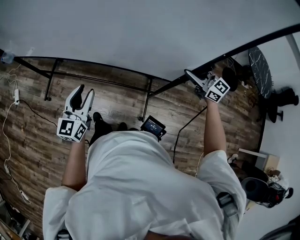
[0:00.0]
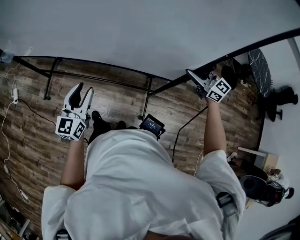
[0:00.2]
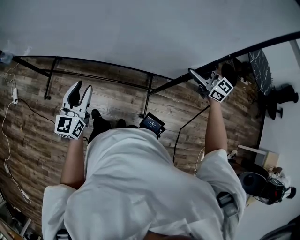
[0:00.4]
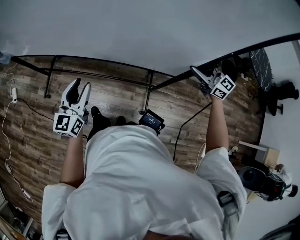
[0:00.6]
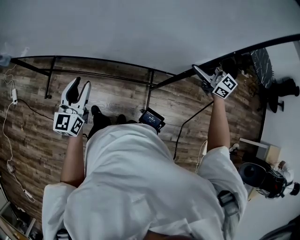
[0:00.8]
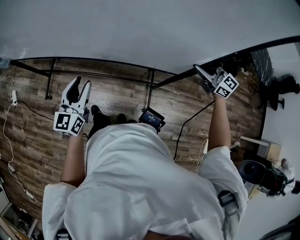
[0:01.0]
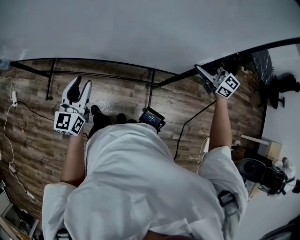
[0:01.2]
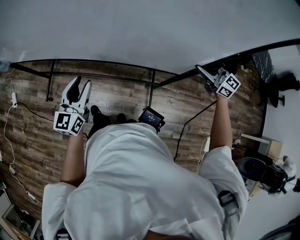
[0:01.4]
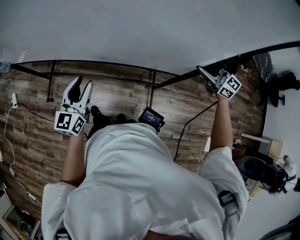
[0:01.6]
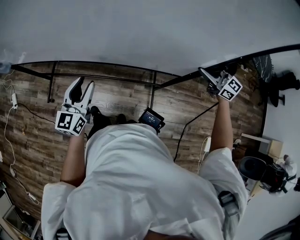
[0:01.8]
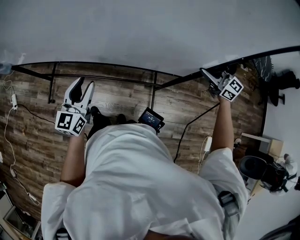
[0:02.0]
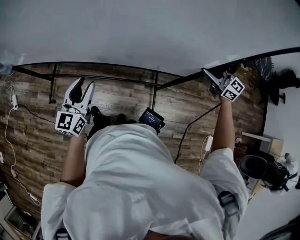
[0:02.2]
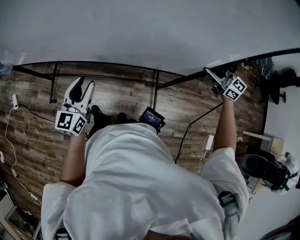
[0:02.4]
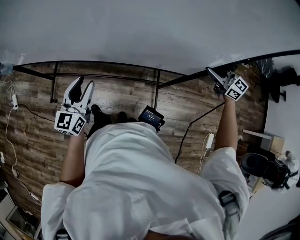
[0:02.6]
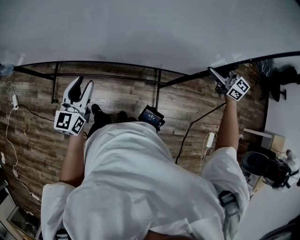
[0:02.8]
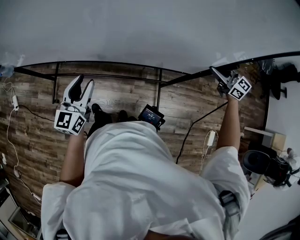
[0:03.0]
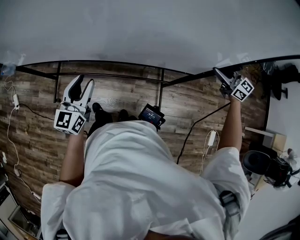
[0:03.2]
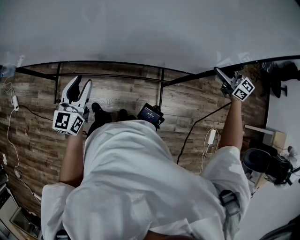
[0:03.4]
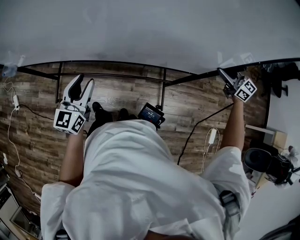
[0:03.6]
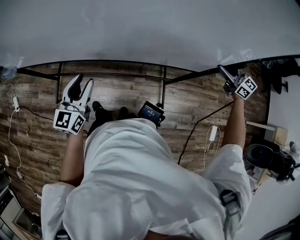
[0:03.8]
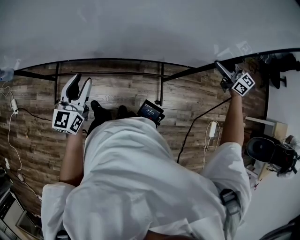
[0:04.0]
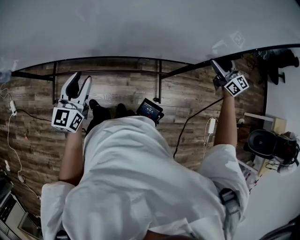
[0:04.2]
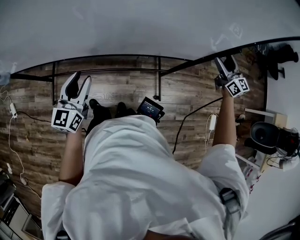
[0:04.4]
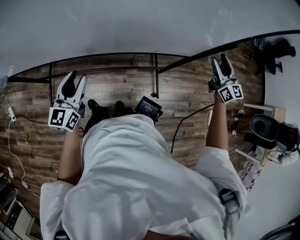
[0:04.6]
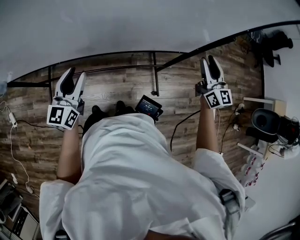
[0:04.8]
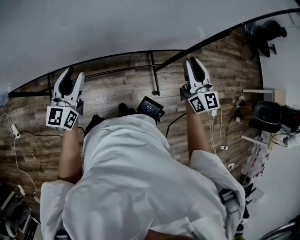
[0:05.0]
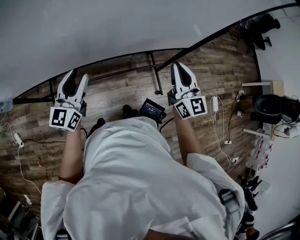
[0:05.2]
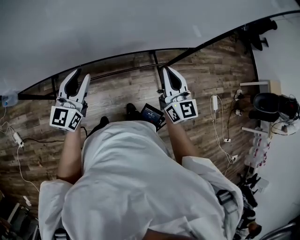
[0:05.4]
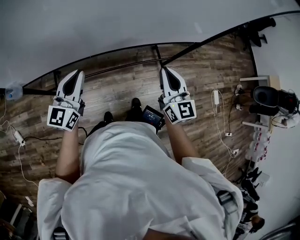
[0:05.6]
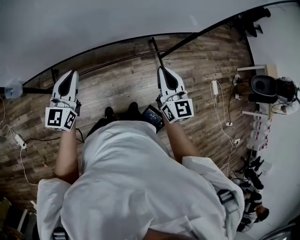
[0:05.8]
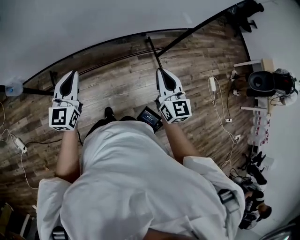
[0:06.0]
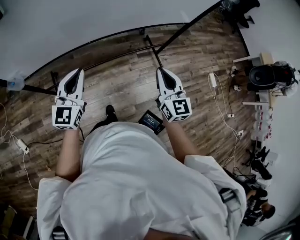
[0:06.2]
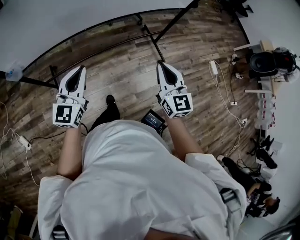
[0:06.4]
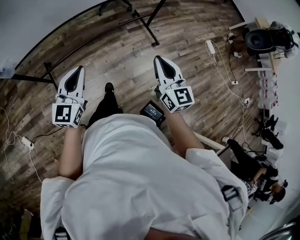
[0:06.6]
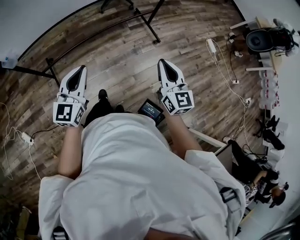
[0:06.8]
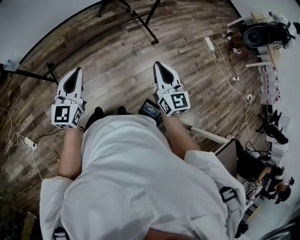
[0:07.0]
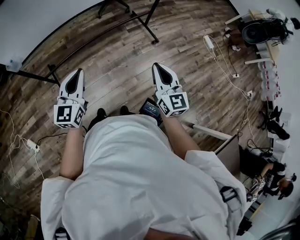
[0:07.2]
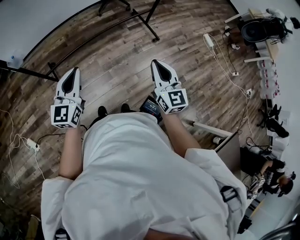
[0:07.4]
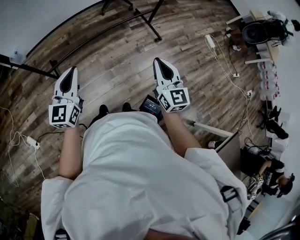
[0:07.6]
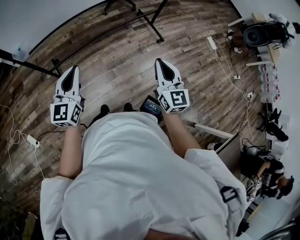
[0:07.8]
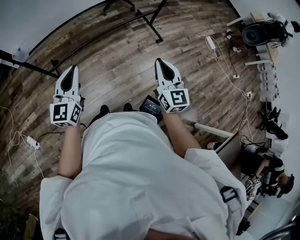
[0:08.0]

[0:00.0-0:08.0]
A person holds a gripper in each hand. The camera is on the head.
0.0 to 1.6 s: The right gripper is displaced to the right by approximately 10 cm.
1.6 to 3.2 s: The right gripper moves to the right, roughly 10 cm.
3.2 to 4.8 s: The right gripper changes place by about 10 cm, turns by about 40 degrees, and opens, then closes once more.
4.8 to 6.4 s: The left gripper travels backward and to the left by approximately 35 cm, changes its angle by roughly 20 degrees, and closes its fingers; the right gripper travels backward and to the left by roughly 60 cm, rotates roughly 20 degrees, and closes its fingers.
6.4 to 8.0 s: The right gripper moves backward, approximately 20 cm. Meanwhile the left gripper is displaced backward and to the left by approximately 20 cm.

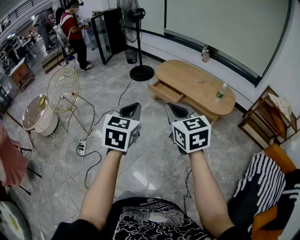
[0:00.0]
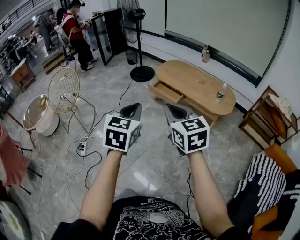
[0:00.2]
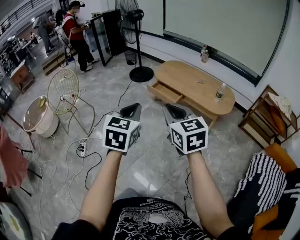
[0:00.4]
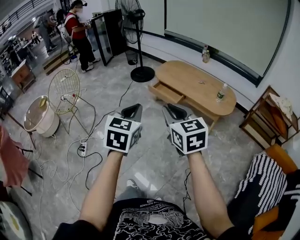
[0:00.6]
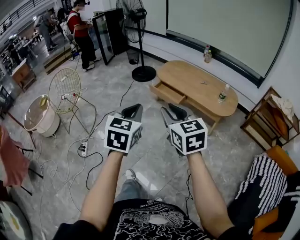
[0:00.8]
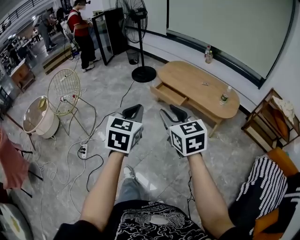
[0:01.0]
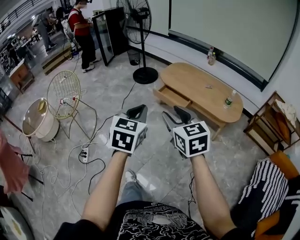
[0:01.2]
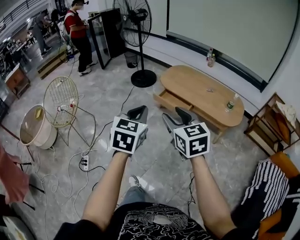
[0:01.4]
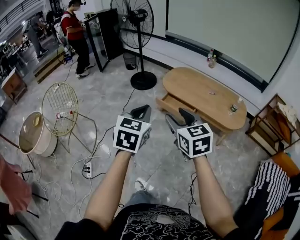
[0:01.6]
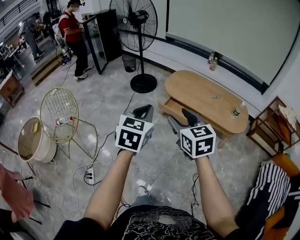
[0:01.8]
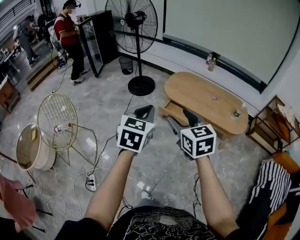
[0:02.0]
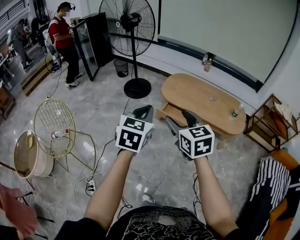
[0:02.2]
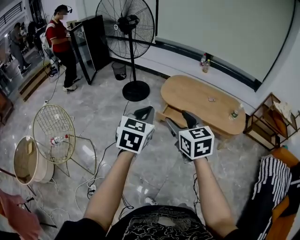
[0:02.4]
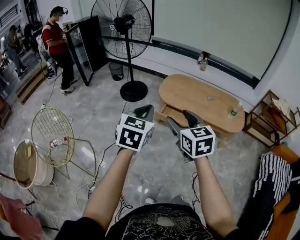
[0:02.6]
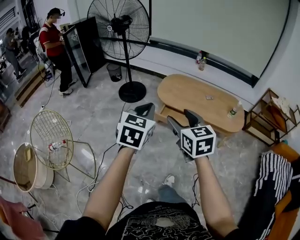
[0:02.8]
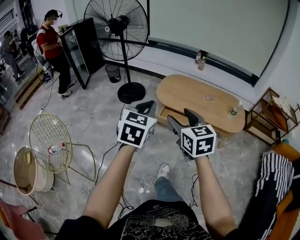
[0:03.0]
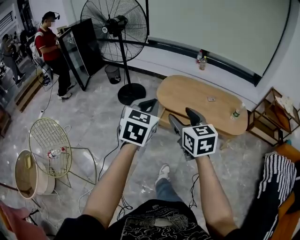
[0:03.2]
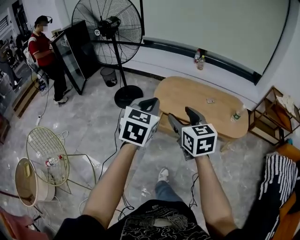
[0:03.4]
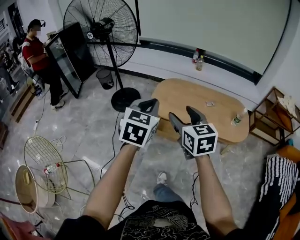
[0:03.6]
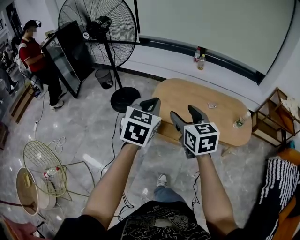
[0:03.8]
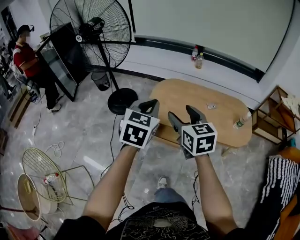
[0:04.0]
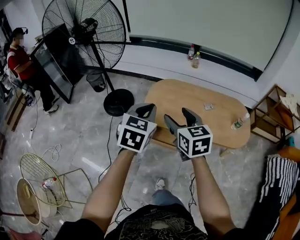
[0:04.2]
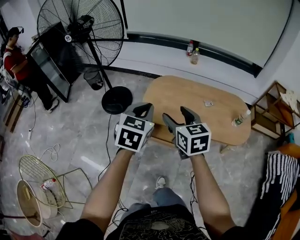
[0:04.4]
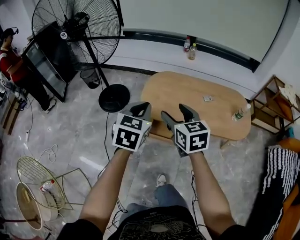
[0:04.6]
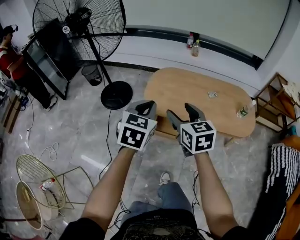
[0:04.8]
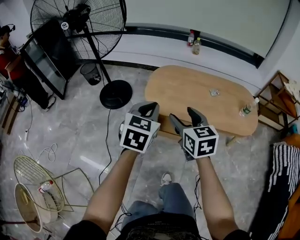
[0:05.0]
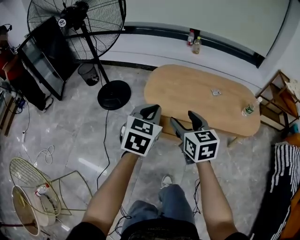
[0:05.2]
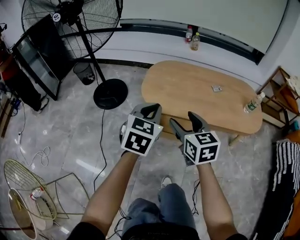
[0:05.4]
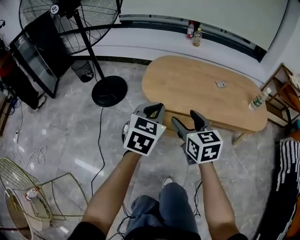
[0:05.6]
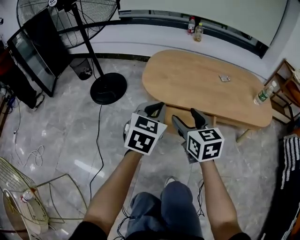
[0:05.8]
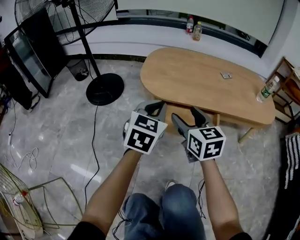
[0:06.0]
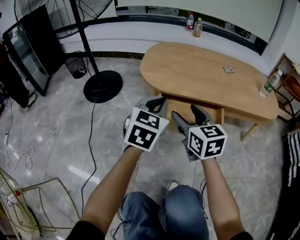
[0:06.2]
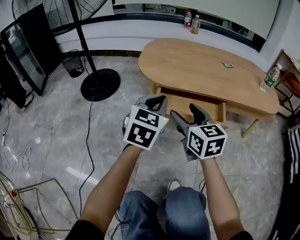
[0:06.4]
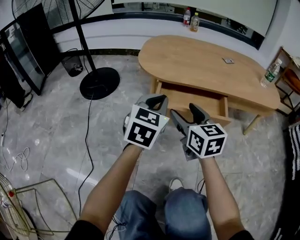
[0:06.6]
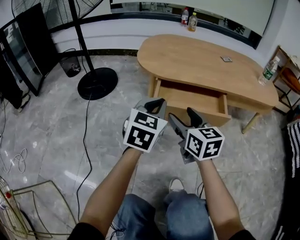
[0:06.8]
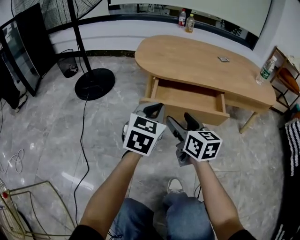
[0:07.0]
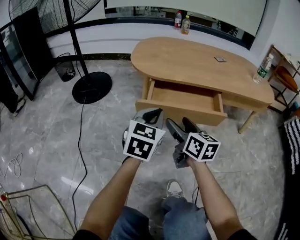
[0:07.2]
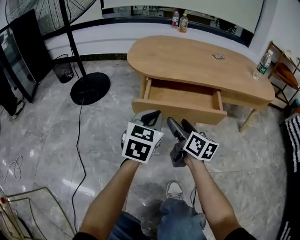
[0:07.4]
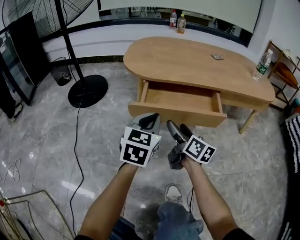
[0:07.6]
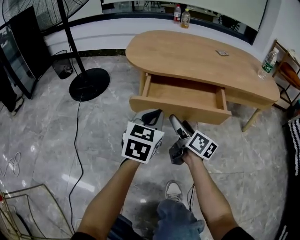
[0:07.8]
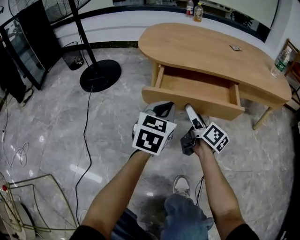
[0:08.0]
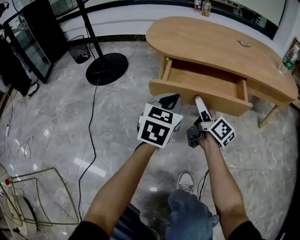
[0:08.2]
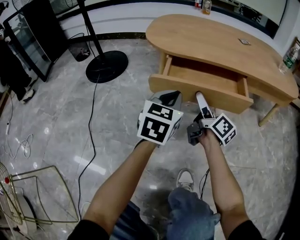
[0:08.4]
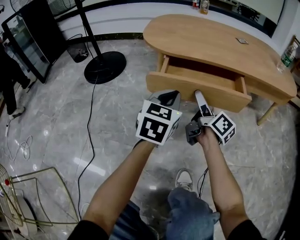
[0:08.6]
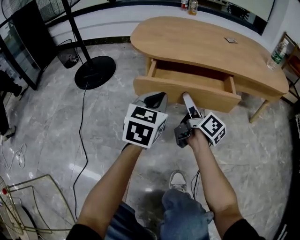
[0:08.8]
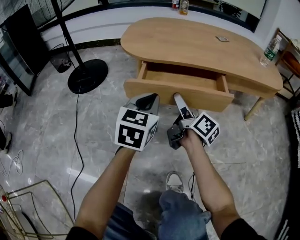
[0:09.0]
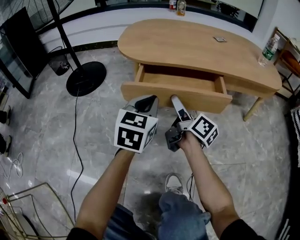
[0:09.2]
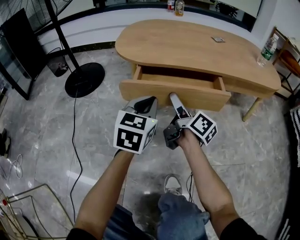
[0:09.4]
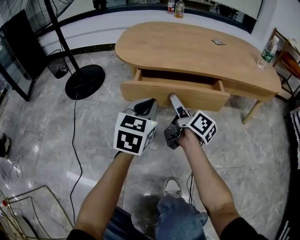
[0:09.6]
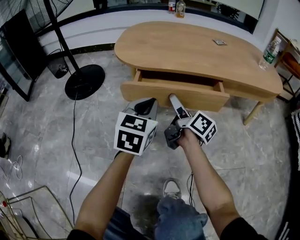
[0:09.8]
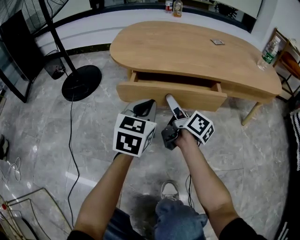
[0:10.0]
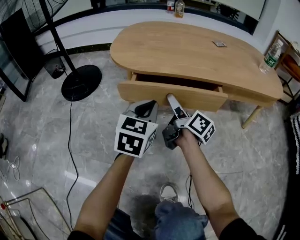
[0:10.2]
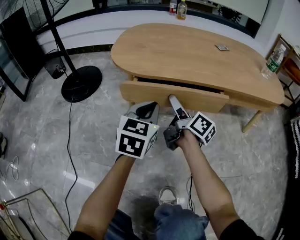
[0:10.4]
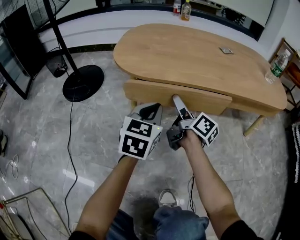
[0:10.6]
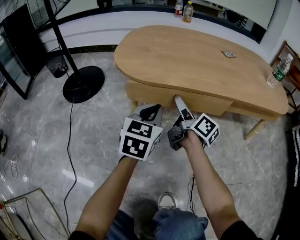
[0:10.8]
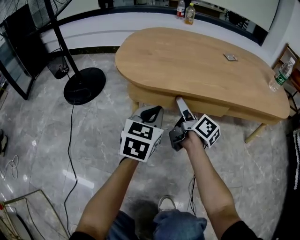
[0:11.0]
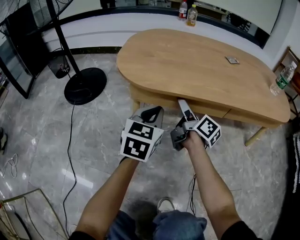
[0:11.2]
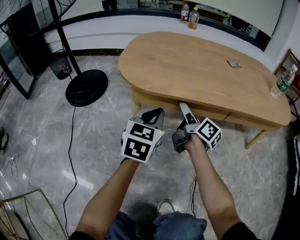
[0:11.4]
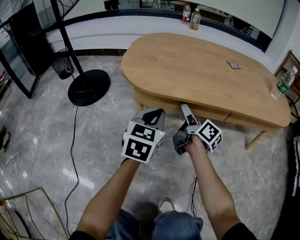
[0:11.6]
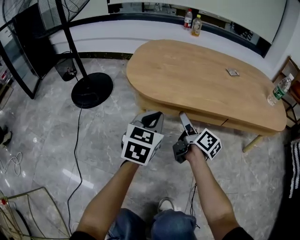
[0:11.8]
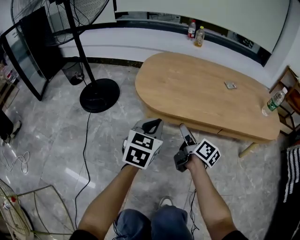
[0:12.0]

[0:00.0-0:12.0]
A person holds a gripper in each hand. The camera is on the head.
0.0 to 1.6 s: The two grippers go roughly 25 cm forward and to the left. The right gripper opens up.
1.6 to 3.0 s: The right gripper moves forward and to the left, approximately 15 cm. Meanwhile the left gripper is displaced forward by roughly 20 cm.
3.0 to 4.4 s: Both grippers travel together forward, about 30 cm.
4.4 to 6.0 s: The two grippers go roughly 35 cm downward.
6.0 to 7.6 s: Both grippers travel together downward, about 20 cm. The right gripper rotates roughly 40 degrees.
7.6 to 9.0 s: The right gripper swivels some 20 degrees.
9.0 to 10.4 s: Both grippers move forward, roughly 5 cm.
10.4 to 12.0 s: The right gripper is displaced upward by about 5 cm, while the left gripper is displaced upward and to the left by about 10 cm.

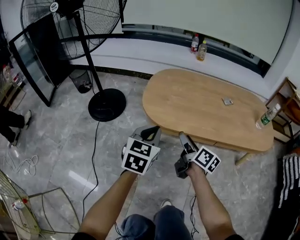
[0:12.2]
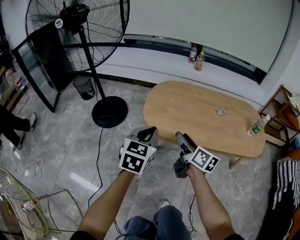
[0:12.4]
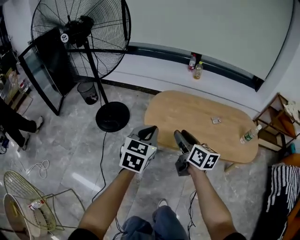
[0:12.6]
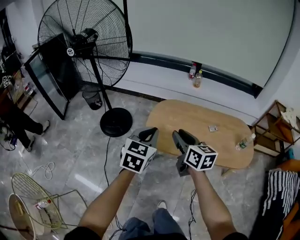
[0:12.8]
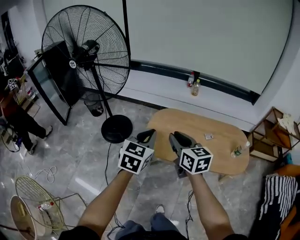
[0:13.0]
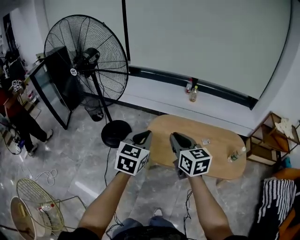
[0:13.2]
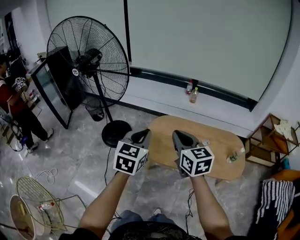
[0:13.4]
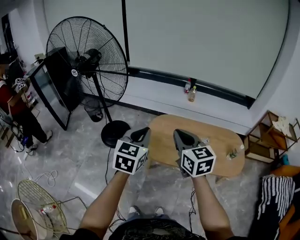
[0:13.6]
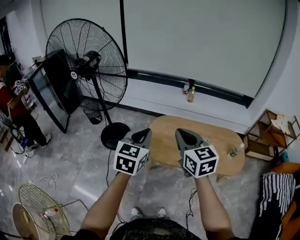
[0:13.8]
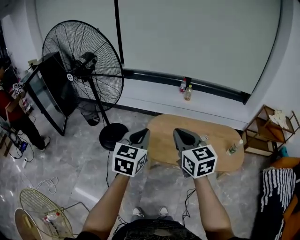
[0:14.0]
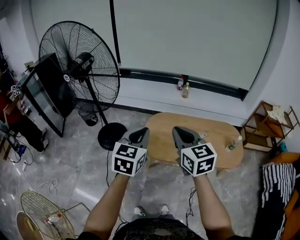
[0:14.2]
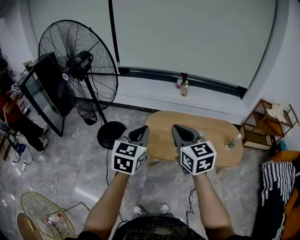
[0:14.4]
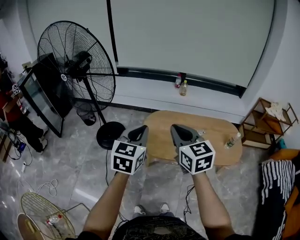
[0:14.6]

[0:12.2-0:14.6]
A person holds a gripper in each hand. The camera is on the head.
12.2 to 13.4 s: The two grippers go some 50 cm upward. The right gripper rotates around the line of its fingers by some 50 degrees, counterclockwise from behind, and closes up.
13.4 to 14.6 s: The grippers stay close to where they were, moving slightly.

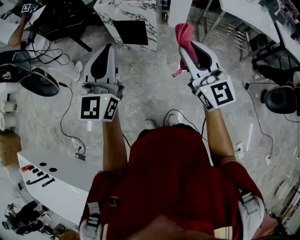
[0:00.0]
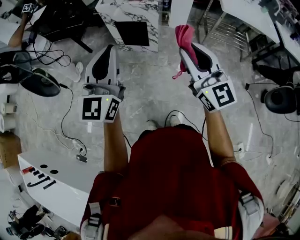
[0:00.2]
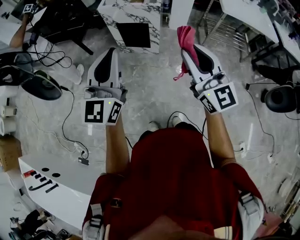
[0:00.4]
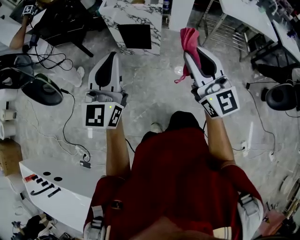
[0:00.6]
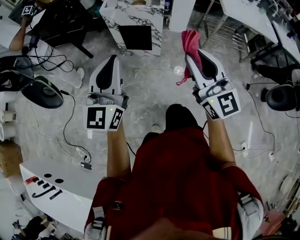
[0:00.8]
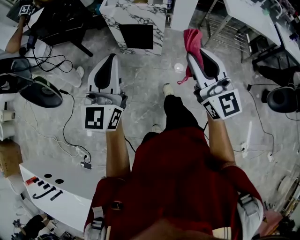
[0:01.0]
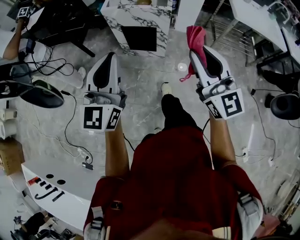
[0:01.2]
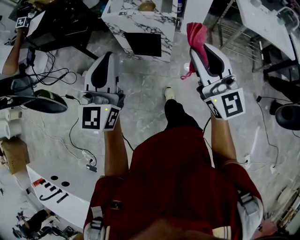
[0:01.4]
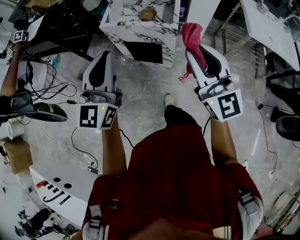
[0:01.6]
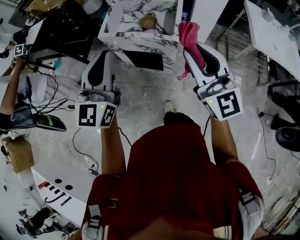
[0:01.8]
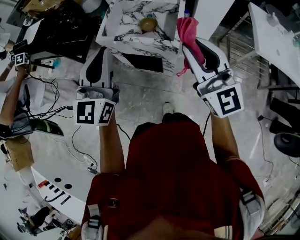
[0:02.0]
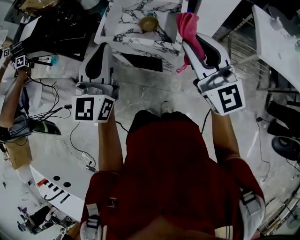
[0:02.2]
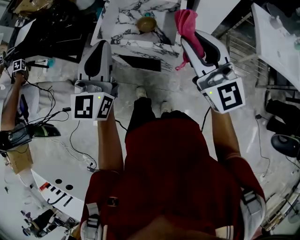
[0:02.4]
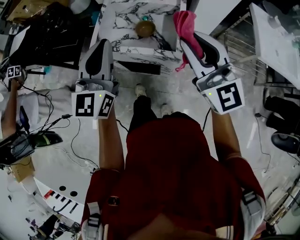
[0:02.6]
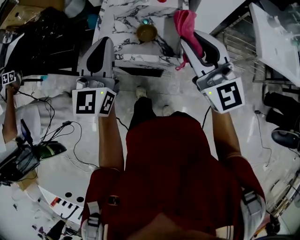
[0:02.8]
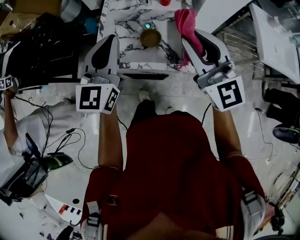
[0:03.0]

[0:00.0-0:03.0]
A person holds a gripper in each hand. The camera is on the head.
0.0 to 1.6 s: The two grippers go approximately 30 cm forward.
1.6 to 3.0 s: The grippers both shift forward by some 40 cm.
